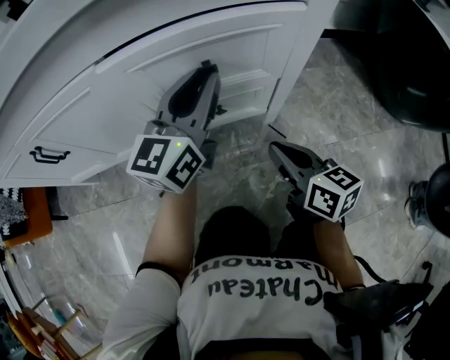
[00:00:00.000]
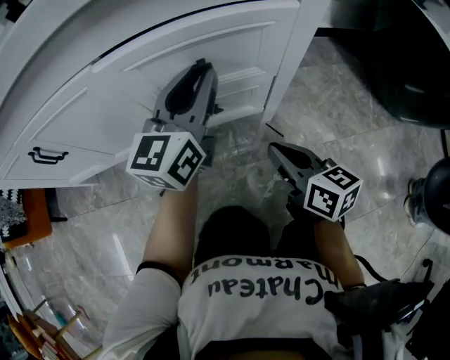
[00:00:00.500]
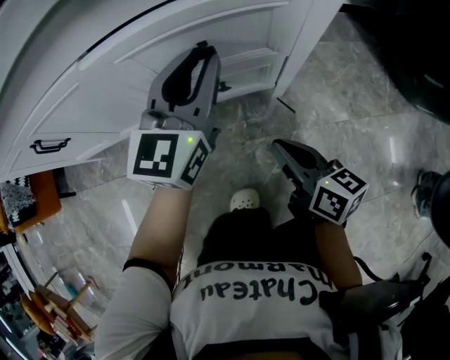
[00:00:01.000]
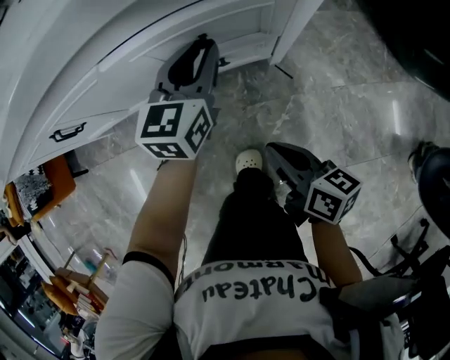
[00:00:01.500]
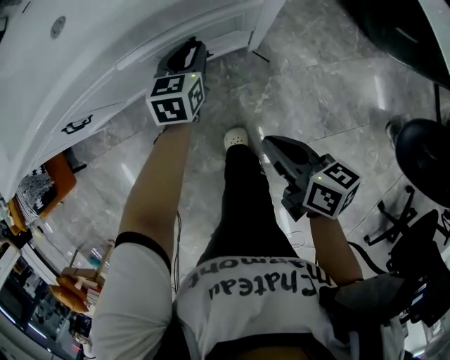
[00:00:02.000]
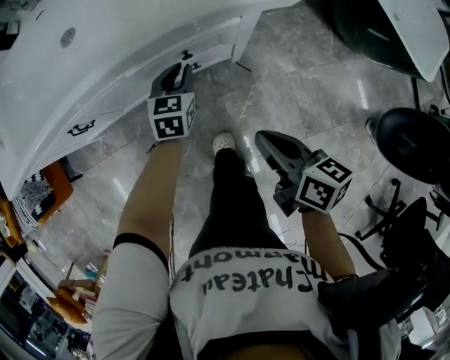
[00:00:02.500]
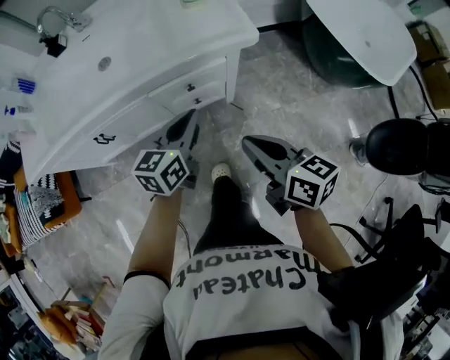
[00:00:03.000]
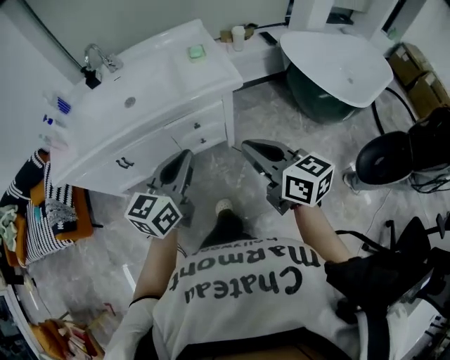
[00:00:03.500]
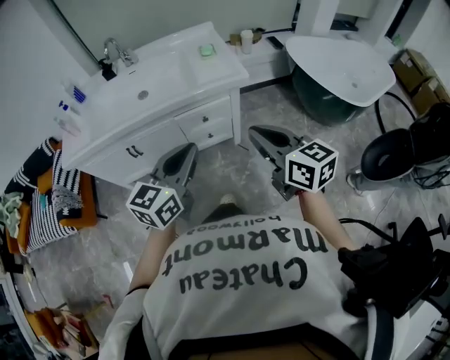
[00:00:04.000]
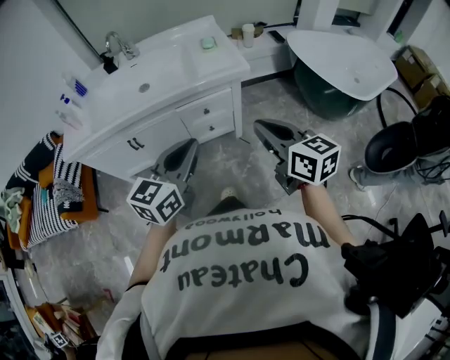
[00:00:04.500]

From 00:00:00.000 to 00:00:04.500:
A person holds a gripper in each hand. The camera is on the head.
From 00:00:00.000 to 00:00:02.000: The left gripper points its fingers some 40 degrees further downward, while the right gripper travels upward and backward by approximately 20 cm, and changes its angle by approximately 20 degrees.
From 00:00:02.000 to 00:00:04.500: The right gripper goes about 40 cm upward, and changes its angle by approximately 40 degrees; the left gripper goes about 60 cm upward and backward, and swivels about 30 degrees.

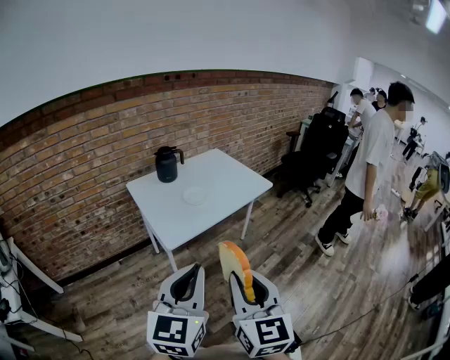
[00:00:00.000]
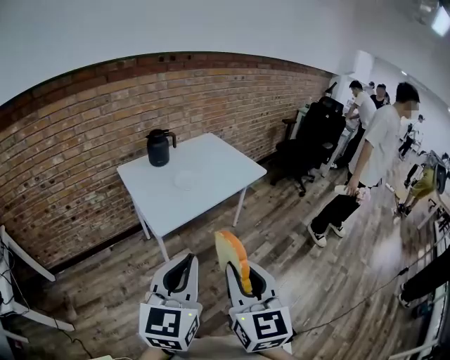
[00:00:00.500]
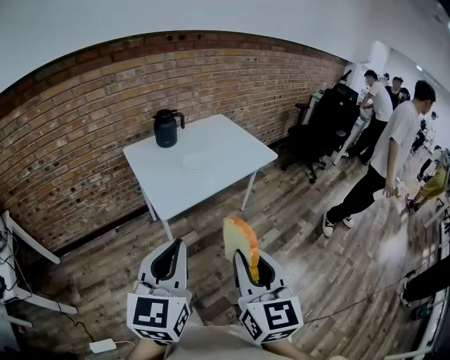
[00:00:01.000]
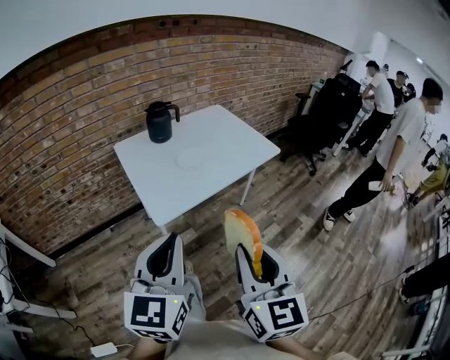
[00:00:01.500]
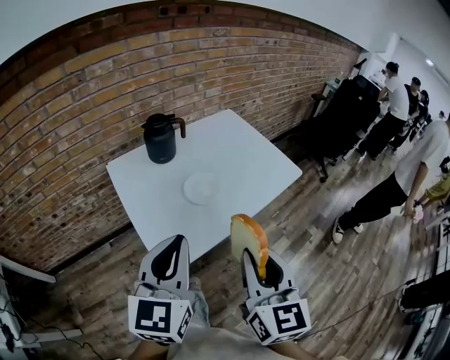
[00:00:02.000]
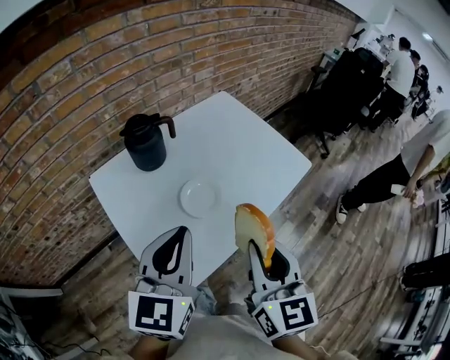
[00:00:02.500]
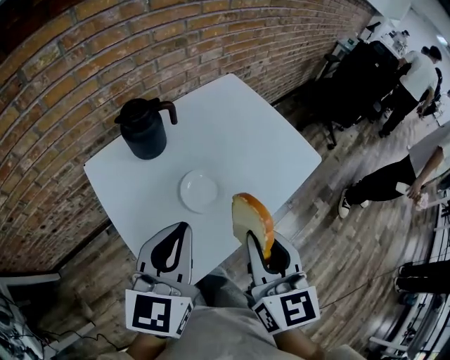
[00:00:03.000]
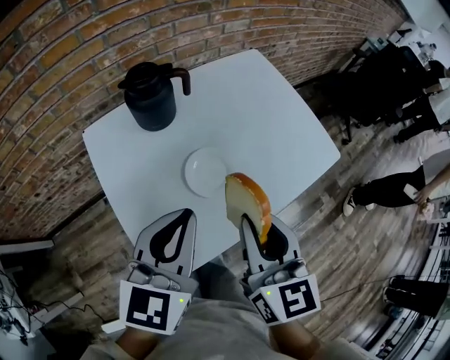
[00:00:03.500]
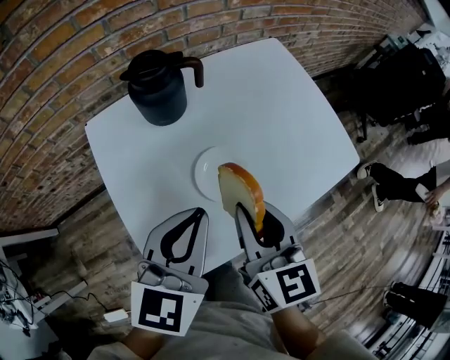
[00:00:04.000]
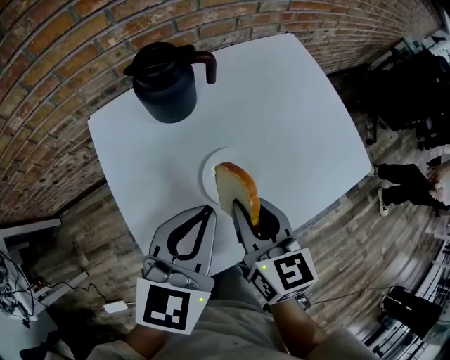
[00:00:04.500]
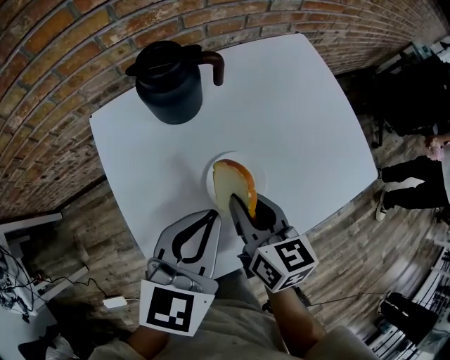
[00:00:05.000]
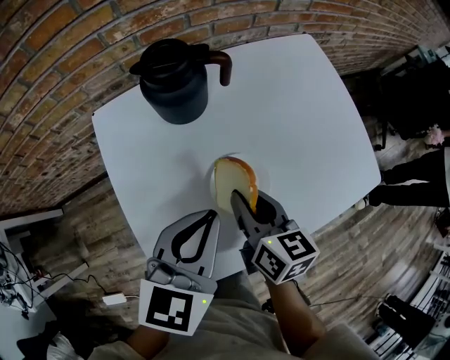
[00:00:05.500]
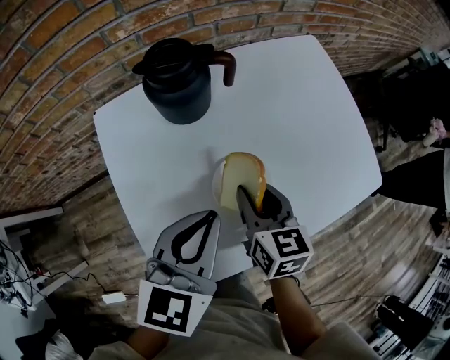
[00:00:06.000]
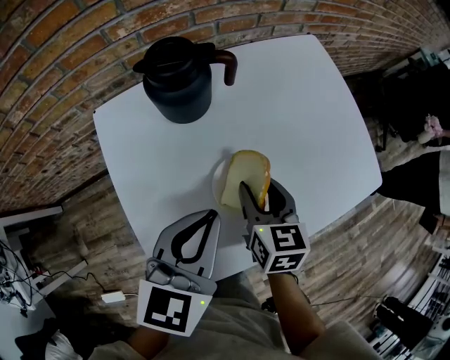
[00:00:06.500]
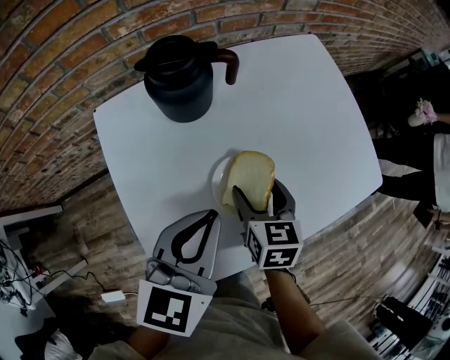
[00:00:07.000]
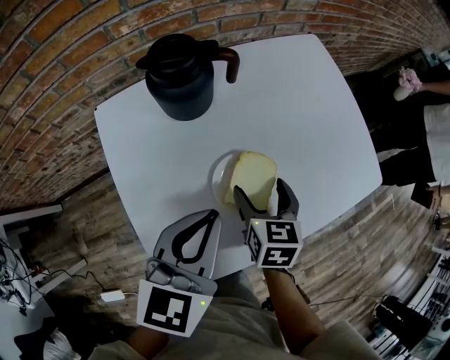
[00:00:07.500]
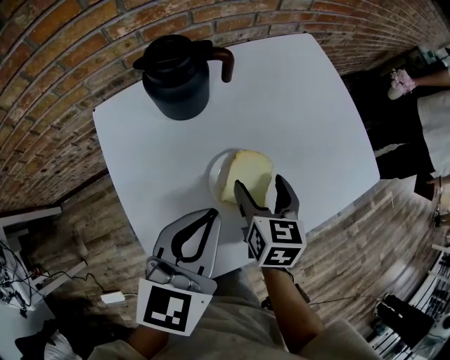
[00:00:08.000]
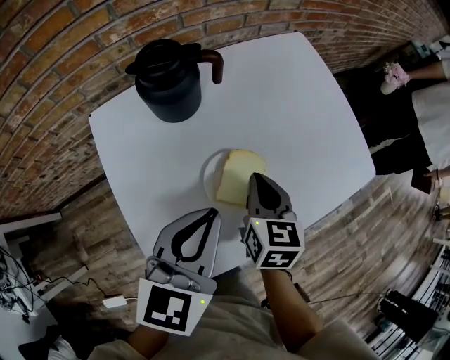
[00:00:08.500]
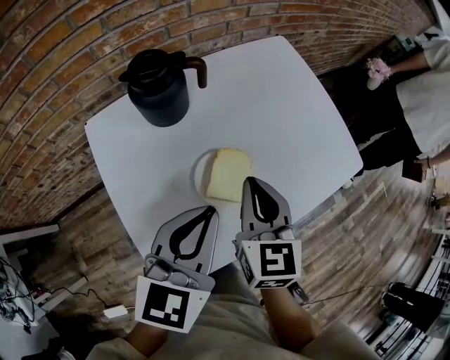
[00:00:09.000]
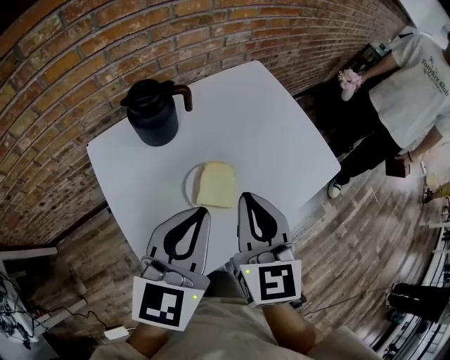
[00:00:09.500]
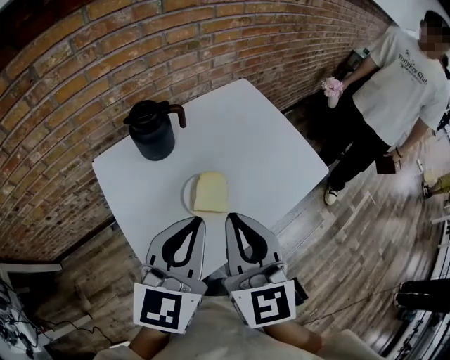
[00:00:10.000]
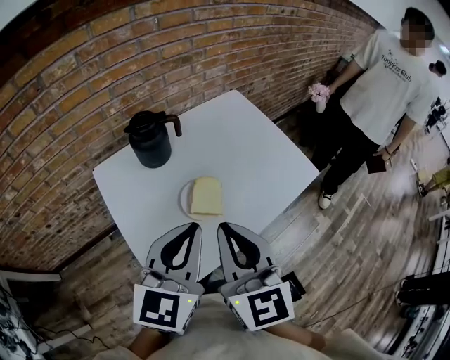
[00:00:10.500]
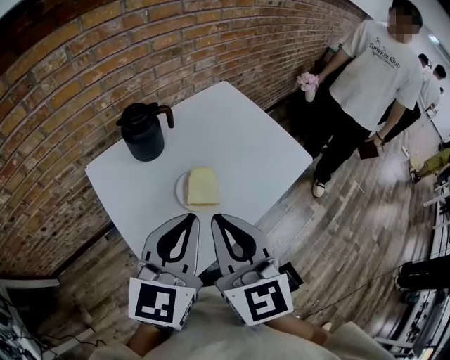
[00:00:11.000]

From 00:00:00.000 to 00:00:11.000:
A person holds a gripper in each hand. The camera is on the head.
From 00:00:00.000 to 00:00:02.000: The two grippers go approximately 30 cm forward.
From 00:00:02.000 to 00:00:03.500: The right gripper shifts about 20 cm forward. Meanwhile the left gripper shifts some 20 cm forward and downward.
From 00:00:03.500 to 00:00:05.500: The right gripper moves downward and forward, roughly 20 cm, and changes its angle by about 30 degrees, while the left gripper is displaced downward and forward by about 10 cm.
From 00:00:05.500 to 00:00:07.500: The right gripper ends up some 5 cm from where it was, changes its angle by roughly 30 degrees, and opens its fingers.
From 00:00:07.500 to 00:00:09.000: The right gripper shifts about 10 cm upward, and closes up.
From 00:00:09.000 to 00:00:11.000: The left gripper shifts roughly 15 cm upward and backward. Meanwhile the right gripper is displaced upward and backward by about 20 cm.

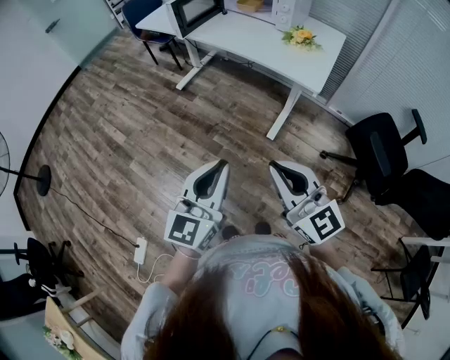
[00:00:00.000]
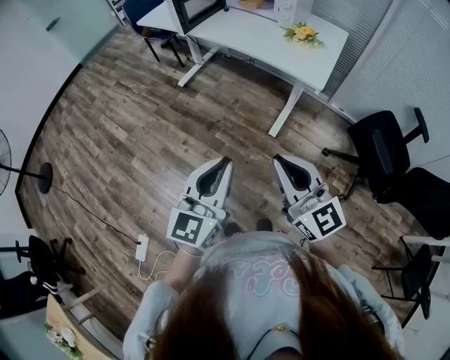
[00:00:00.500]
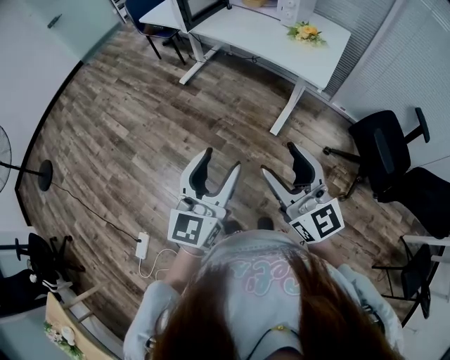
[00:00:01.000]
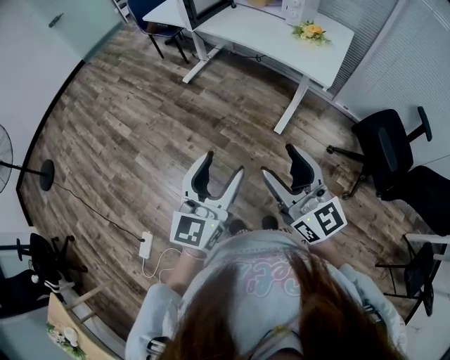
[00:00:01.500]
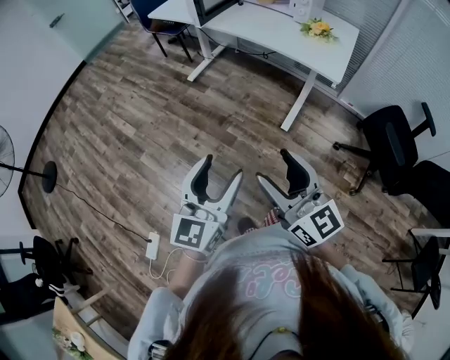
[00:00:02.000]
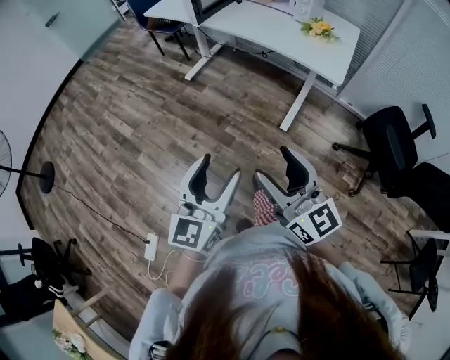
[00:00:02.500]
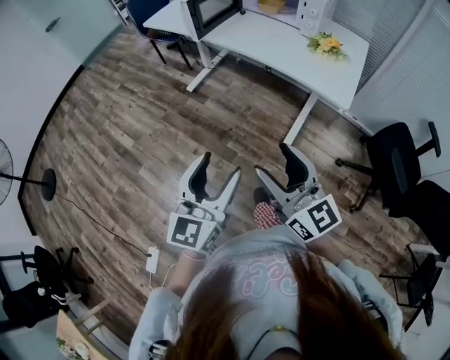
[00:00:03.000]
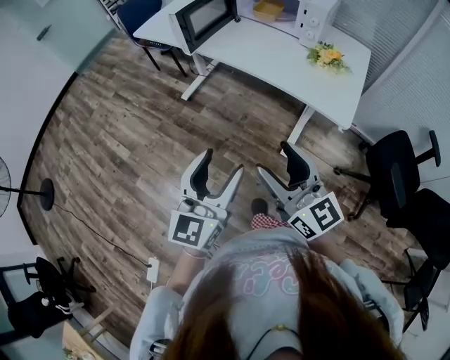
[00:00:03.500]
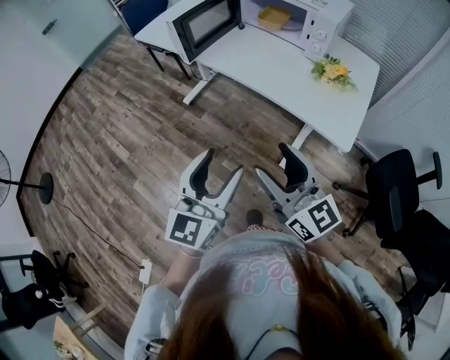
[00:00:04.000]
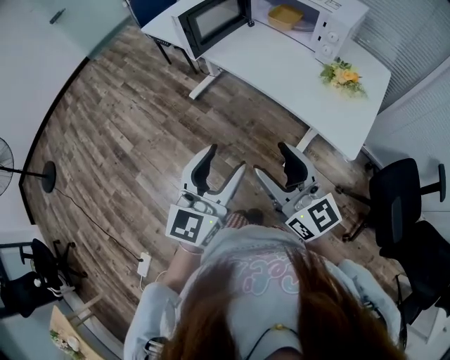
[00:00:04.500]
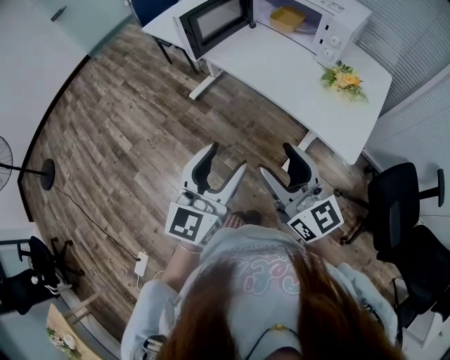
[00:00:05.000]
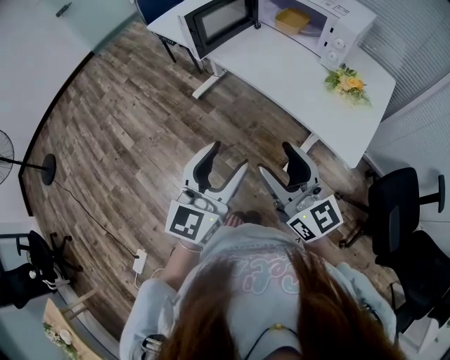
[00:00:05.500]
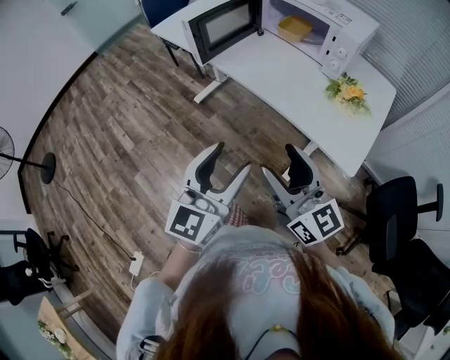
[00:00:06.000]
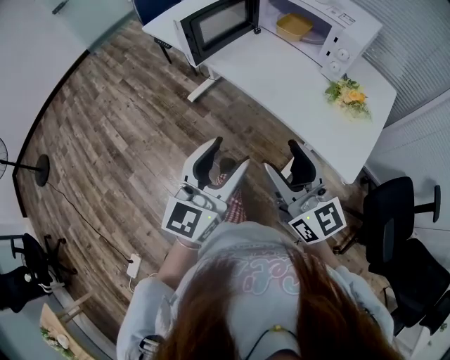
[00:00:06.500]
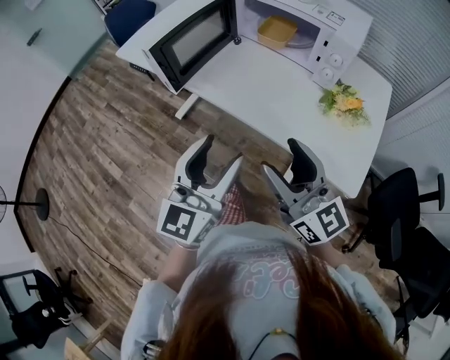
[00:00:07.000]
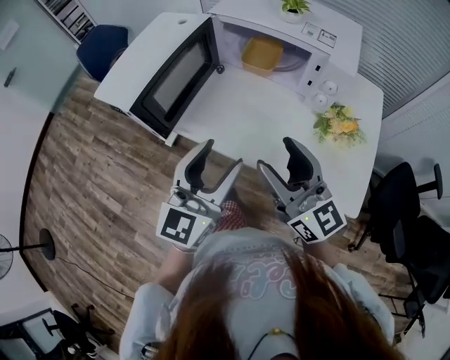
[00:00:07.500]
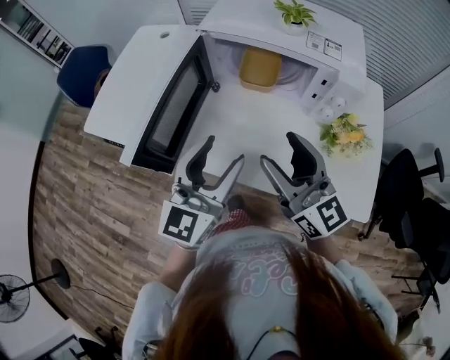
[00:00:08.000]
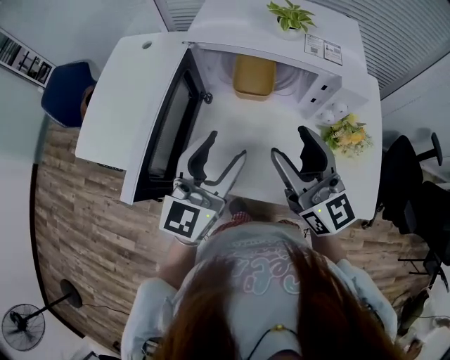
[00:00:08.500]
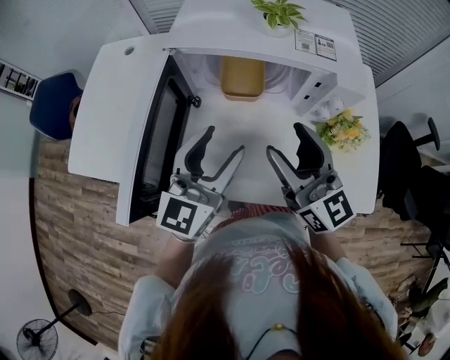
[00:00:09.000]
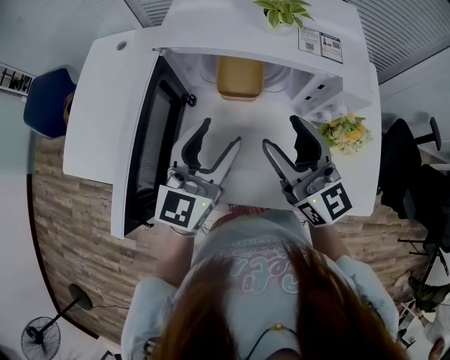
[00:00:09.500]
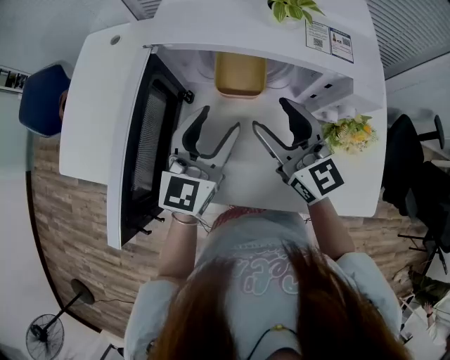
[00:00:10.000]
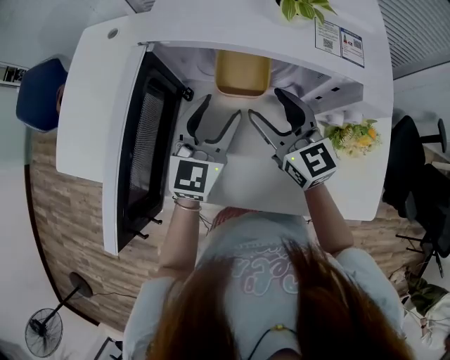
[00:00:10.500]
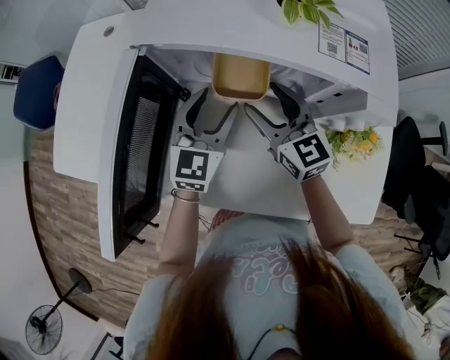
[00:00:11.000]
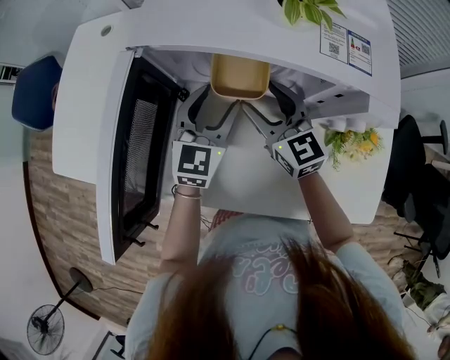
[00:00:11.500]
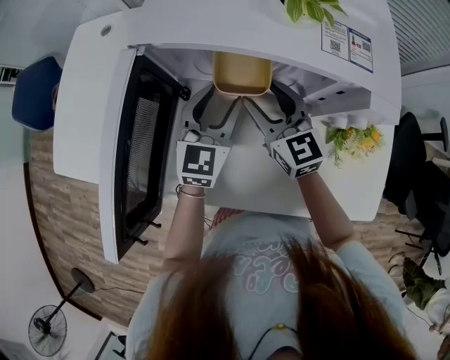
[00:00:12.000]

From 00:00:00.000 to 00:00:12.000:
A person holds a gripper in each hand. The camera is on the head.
From 00:00:00.000 to 00:00:02.000: The grippers both shift to the left by about 10 cm. The left gripper opens up; the right gripper opens up.
From 00:00:02.000 to 00:00:04.000: The grippers both shift forward by roughly 30 cm.
From 00:00:04.000 to 00:00:06.000: The right gripper shifts by about 5 cm.
From 00:00:06.000 to 00:00:08.000: Both grippers travel together forward, about 35 cm. The right gripper changes its angle by some 20 degrees. Meanwhile the left gripper turns by roughly 20 degrees.
From 00:00:08.000 to 00:00:10.000: Both grippers move forward and downward, some 20 cm.
From 00:00:10.000 to 00:00:12.000: The left gripper travels forward and downward by about 10 cm; the right gripper travels downward and forward by roughly 10 cm.
